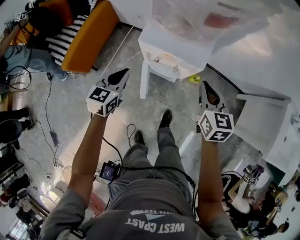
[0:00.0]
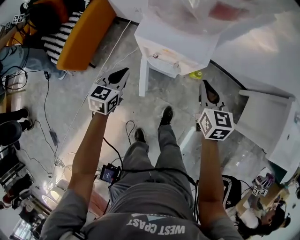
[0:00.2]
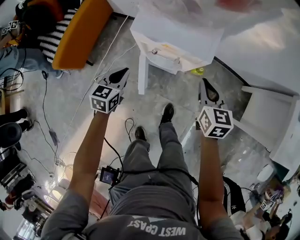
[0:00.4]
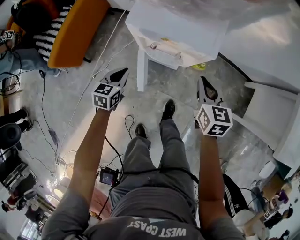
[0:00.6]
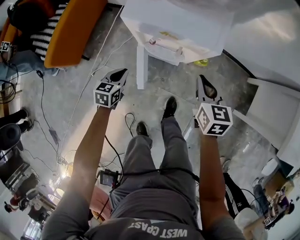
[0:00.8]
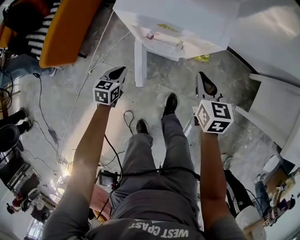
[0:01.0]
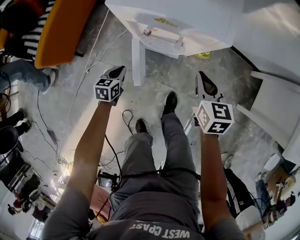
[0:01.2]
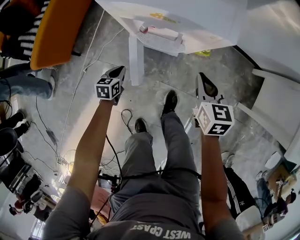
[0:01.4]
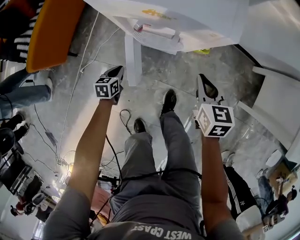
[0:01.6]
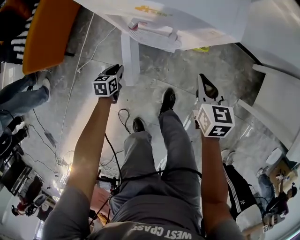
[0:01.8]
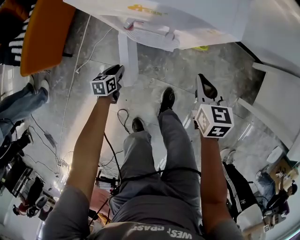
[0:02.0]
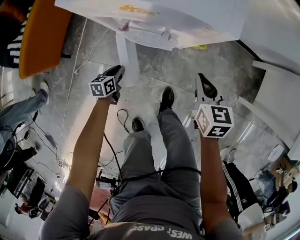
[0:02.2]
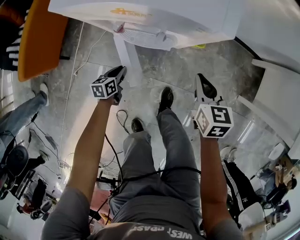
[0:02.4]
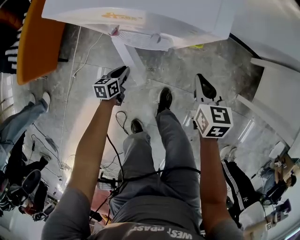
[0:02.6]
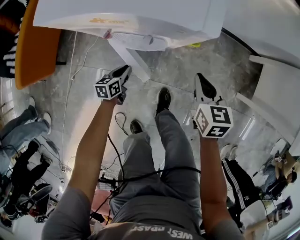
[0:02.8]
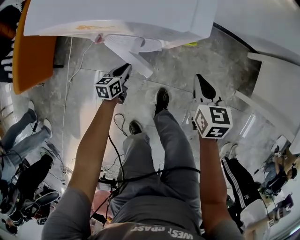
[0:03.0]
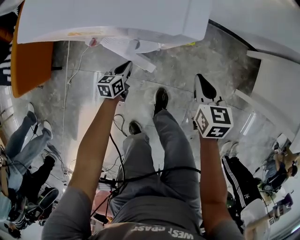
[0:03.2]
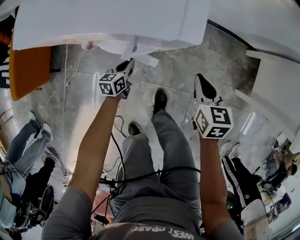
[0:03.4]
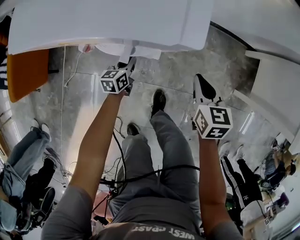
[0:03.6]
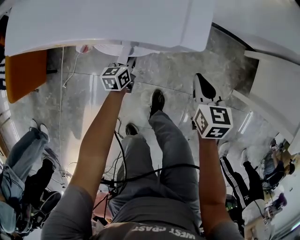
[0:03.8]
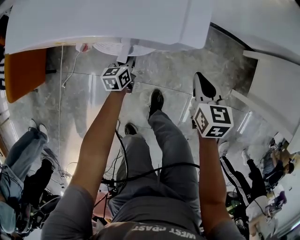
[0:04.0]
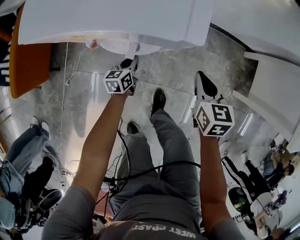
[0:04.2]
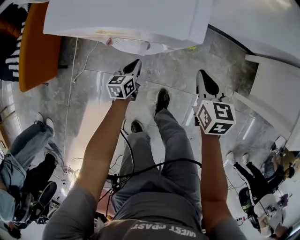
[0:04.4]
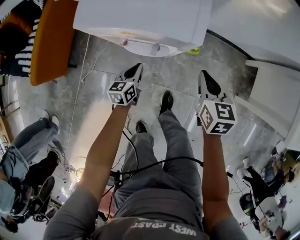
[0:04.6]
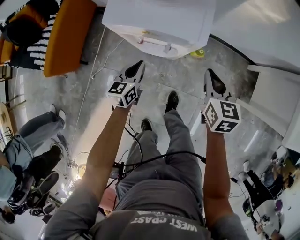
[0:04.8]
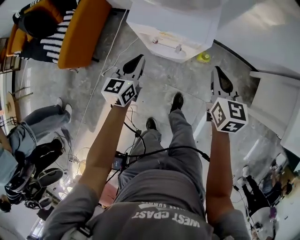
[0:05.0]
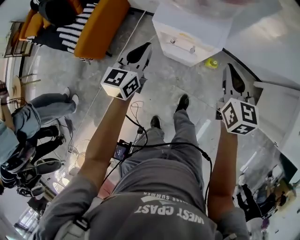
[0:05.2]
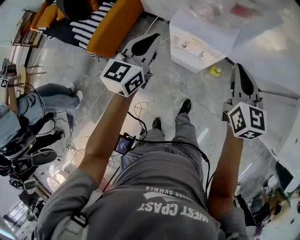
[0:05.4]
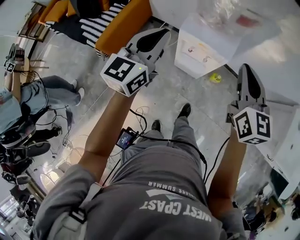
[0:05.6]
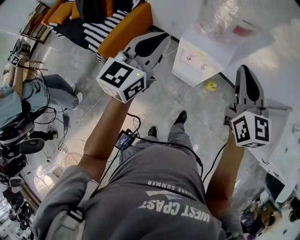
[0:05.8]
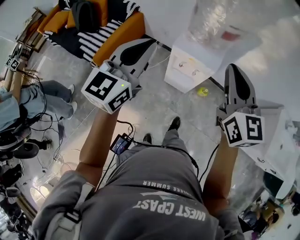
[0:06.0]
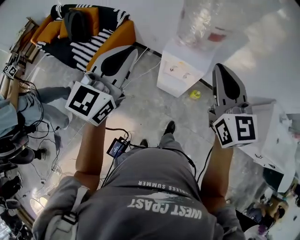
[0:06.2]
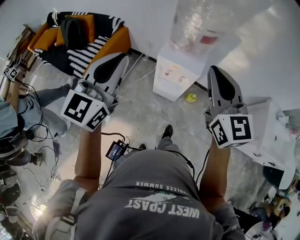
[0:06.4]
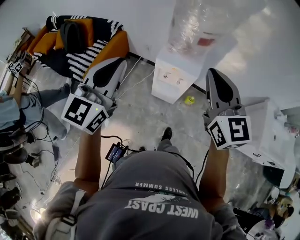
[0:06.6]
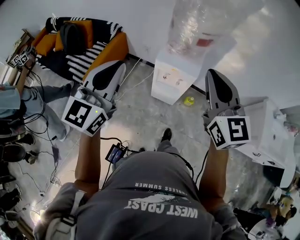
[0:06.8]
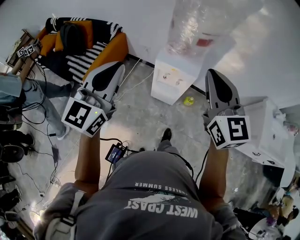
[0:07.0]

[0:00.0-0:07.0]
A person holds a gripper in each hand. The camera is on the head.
0:00.0 to 0:01.4: The left gripper goes roughly 40 cm downward, and rotates about 30 degrees; the right gripper is displaced downward by about 25 cm.
0:01.4 to 0:02.8: The grippers both shift to the right and downward by about 10 cm.
0:02.8 to 0:04.2: The left gripper moves forward and to the right, roughly 10 cm.
0:04.2 to 0:05.6: The two grippers go roughly 60 cm upward. The right gripper points its fingers approximately 30 degrees further upward, while the left gripper tilts its fingers about 30 degrees upward.
0:05.6 to 0:07.0: The left gripper shifts roughly 20 cm backward and upward. Meanwhile the right gripper travels upward and backward by roughly 20 cm.

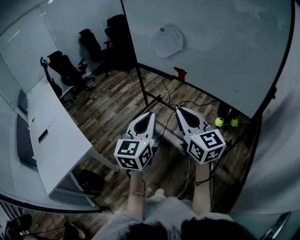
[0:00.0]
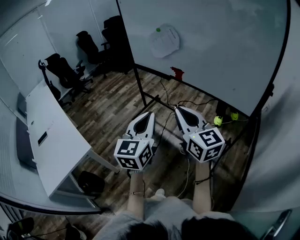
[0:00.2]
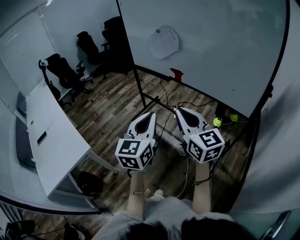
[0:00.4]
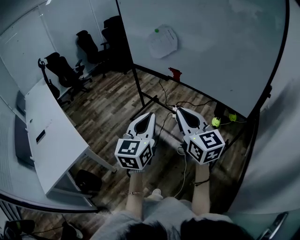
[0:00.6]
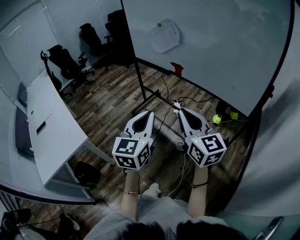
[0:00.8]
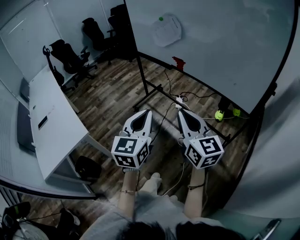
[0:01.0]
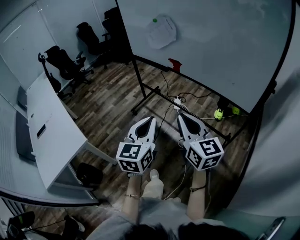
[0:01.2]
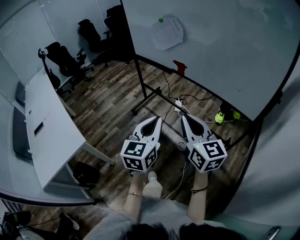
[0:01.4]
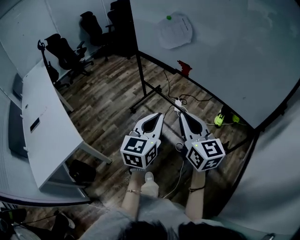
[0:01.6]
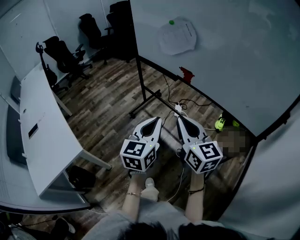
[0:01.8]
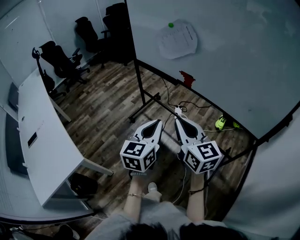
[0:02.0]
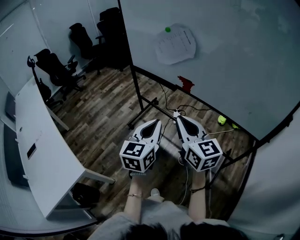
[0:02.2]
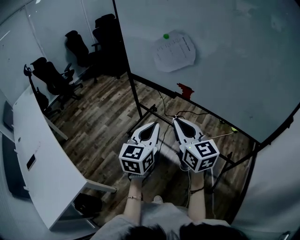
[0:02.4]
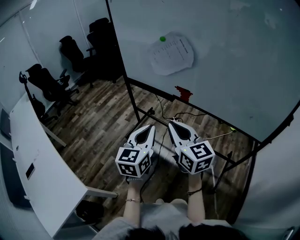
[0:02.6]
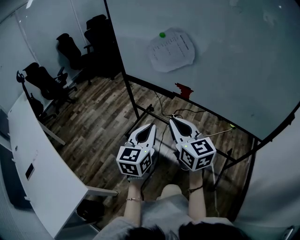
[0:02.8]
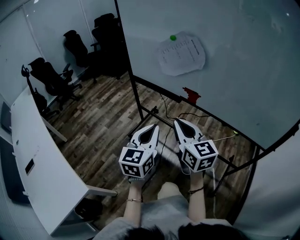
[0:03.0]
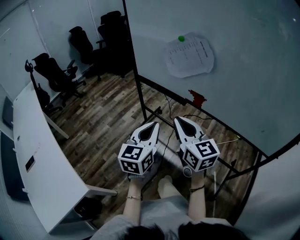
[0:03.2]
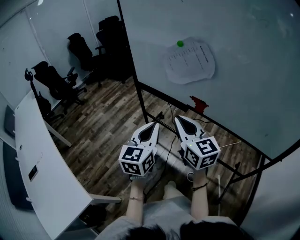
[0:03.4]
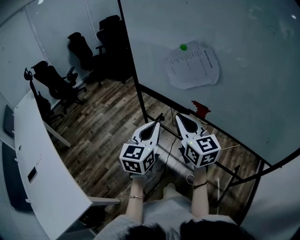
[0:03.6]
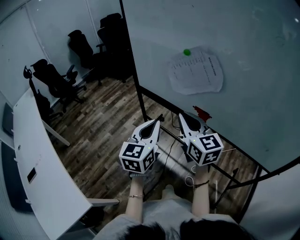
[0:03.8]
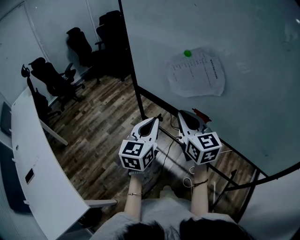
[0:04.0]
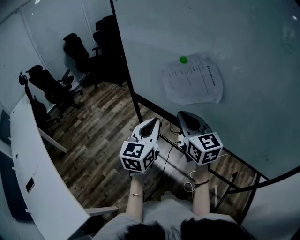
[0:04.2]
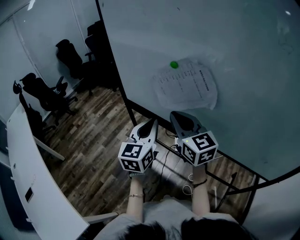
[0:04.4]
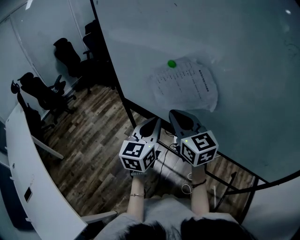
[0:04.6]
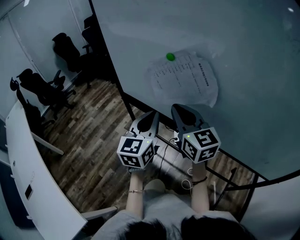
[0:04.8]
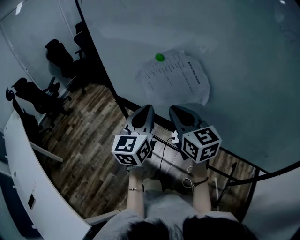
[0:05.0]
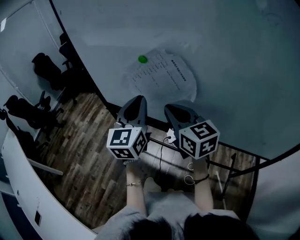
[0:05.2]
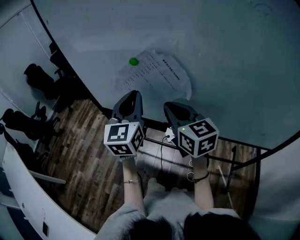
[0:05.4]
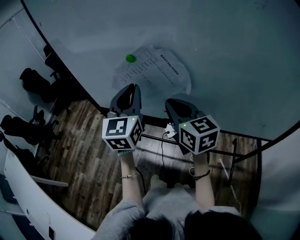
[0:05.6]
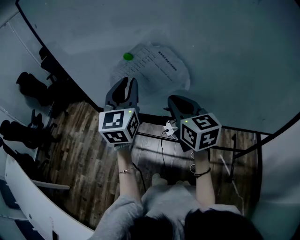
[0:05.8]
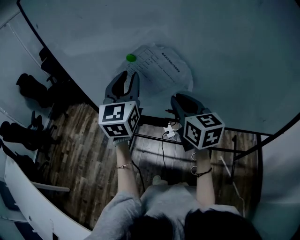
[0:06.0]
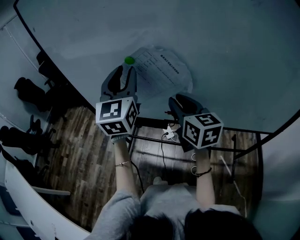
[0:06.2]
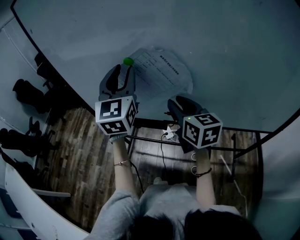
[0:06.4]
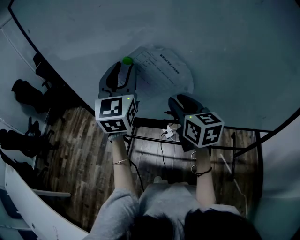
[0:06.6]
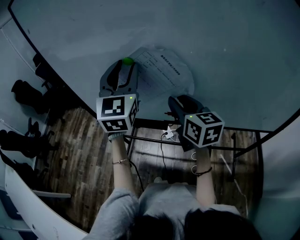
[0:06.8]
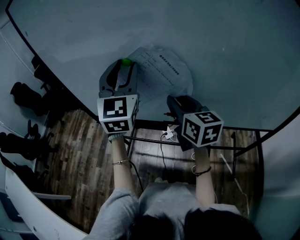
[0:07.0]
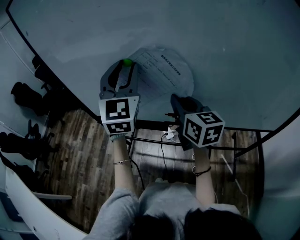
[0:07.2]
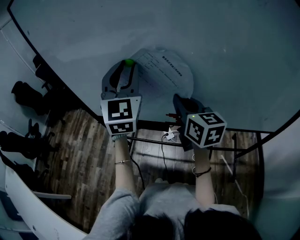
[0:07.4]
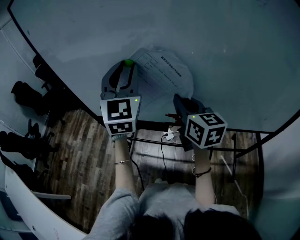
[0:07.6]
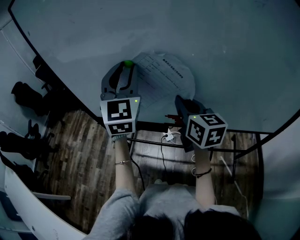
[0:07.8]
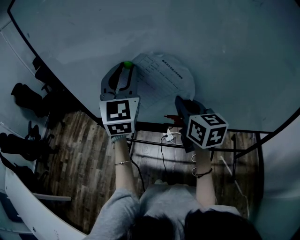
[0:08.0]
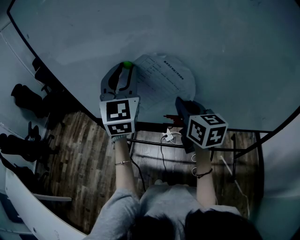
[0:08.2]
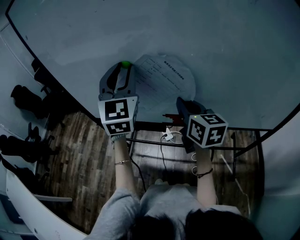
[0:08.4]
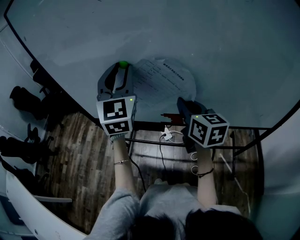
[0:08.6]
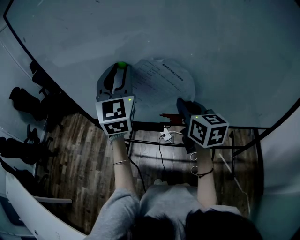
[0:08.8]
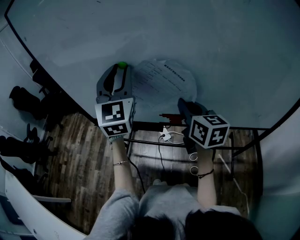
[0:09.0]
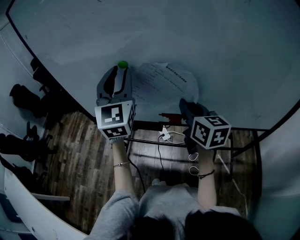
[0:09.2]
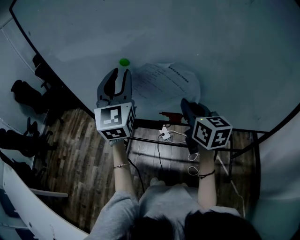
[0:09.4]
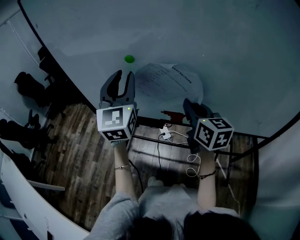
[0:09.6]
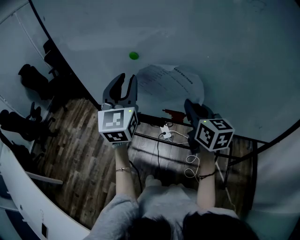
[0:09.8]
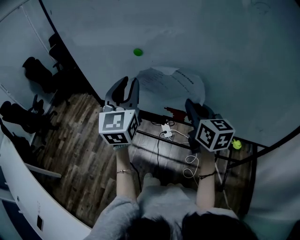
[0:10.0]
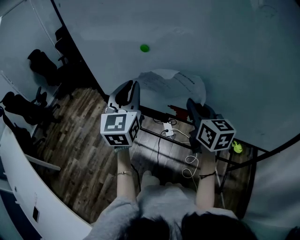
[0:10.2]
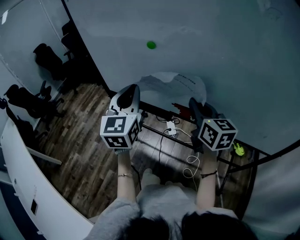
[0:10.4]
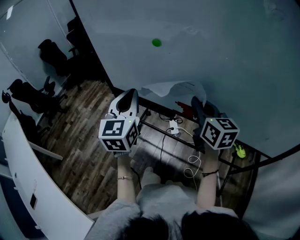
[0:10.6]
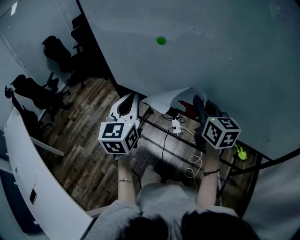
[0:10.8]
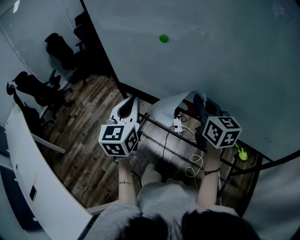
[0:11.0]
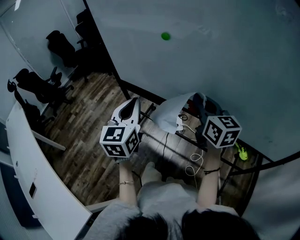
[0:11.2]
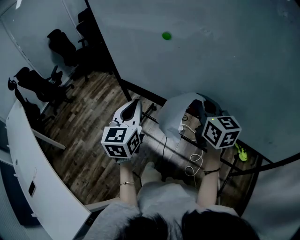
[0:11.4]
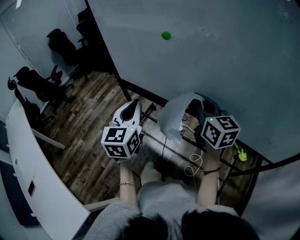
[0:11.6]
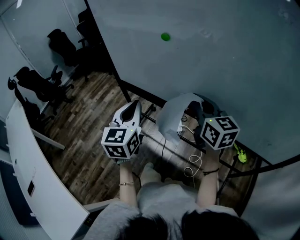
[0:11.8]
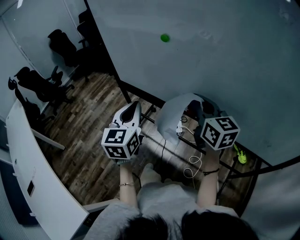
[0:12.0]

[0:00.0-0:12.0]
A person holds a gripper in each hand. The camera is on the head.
0:00.0 to 0:01.6: The grippers both shift forward and downward by some 10 cm.
0:01.6 to 0:03.0: Both grippers move forward and to the left, approximately 20 cm.
0:03.0 to 0:04.4: The grippers both shift forward by about 25 cm.
0:04.4 to 0:06.0: The right gripper is displaced to the right by approximately 10 cm, and turns by approximately 30 degrees. Meanwhile the left gripper goes approximately 15 cm forward, upward and to the right, and opens.
0:06.0 to 0:07.6: The grippers make only small movements.
0:07.6 to 0:09.0: The grippers move only a little.
0:09.0 to 0:10.4: The left gripper is displaced downward and backward by roughly 15 cm, and closes up.
0:10.4 to 0:12.0: The left gripper goes about 5 cm downward.

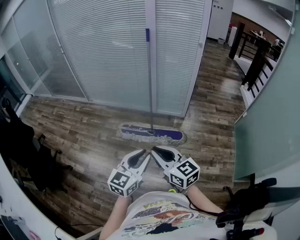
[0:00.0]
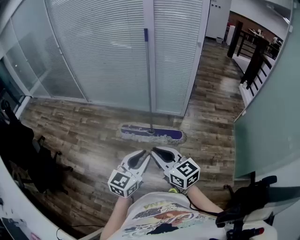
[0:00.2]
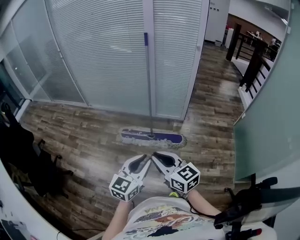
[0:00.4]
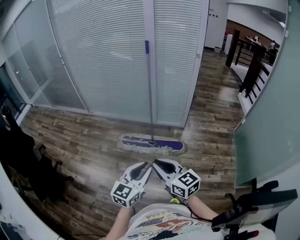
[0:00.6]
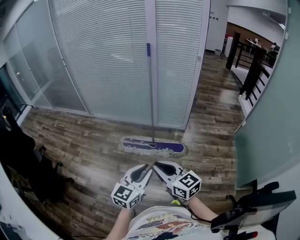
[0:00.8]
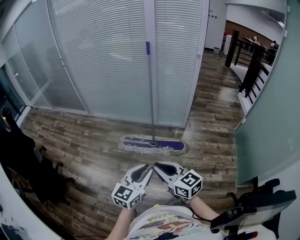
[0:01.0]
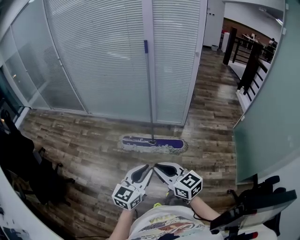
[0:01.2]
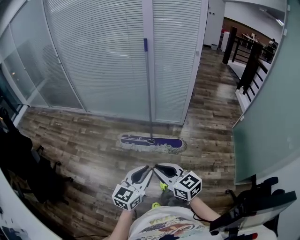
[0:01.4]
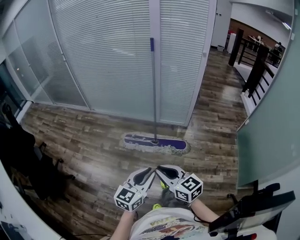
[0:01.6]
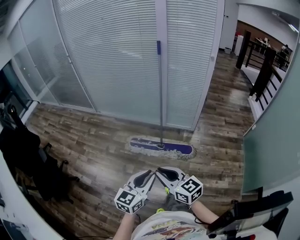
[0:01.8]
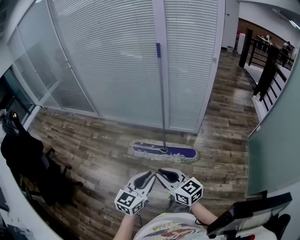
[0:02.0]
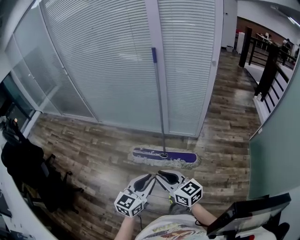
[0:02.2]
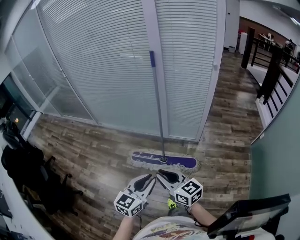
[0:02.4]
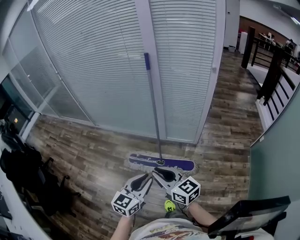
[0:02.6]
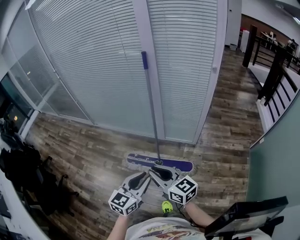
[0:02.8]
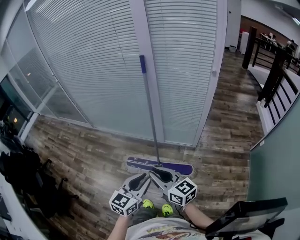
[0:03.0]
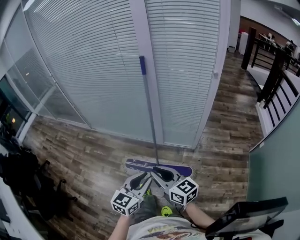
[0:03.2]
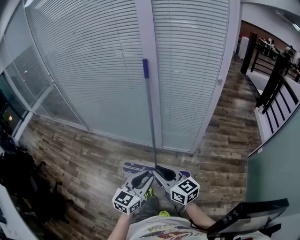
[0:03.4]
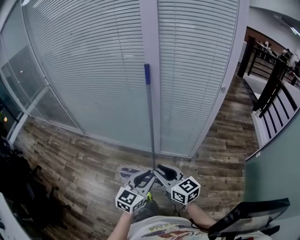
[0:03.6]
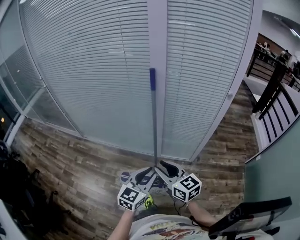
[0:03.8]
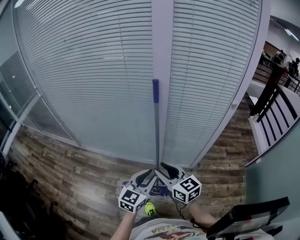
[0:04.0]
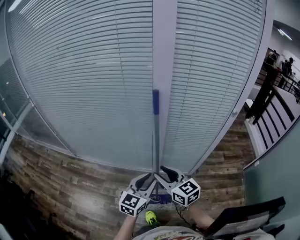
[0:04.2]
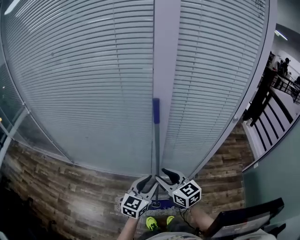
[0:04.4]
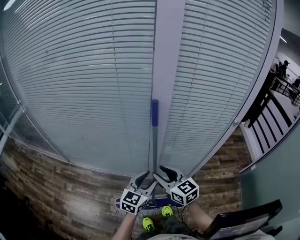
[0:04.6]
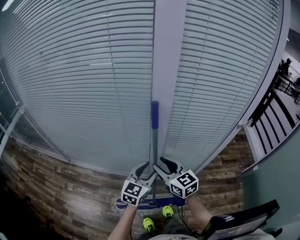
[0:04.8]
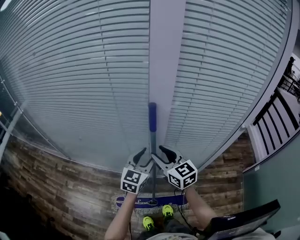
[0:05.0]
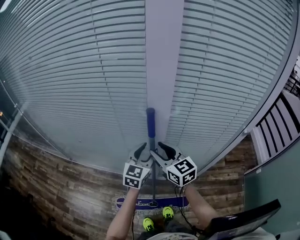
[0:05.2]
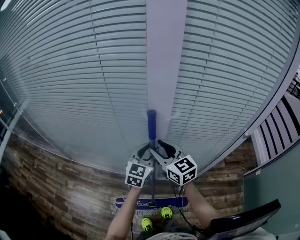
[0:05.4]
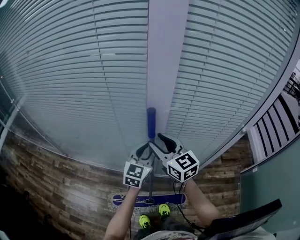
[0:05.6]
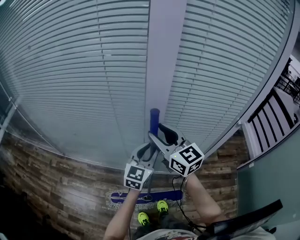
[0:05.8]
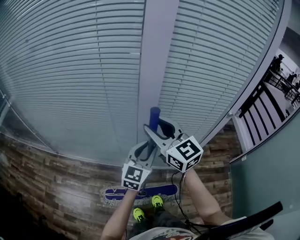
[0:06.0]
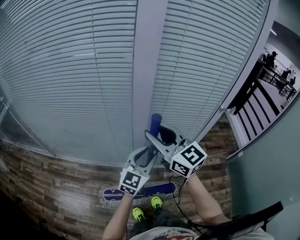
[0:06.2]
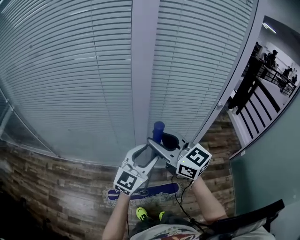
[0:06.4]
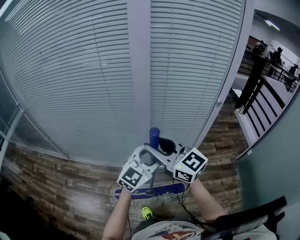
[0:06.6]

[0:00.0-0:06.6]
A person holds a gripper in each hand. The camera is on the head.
0:00.0 to 0:01.6: The right gripper ends up roughly 5 cm from where it was; the left gripper shifts by some 5 cm.
0:01.6 to 0:03.2: Both grippers are carried forward, roughly 40 cm.
0:03.2 to 0:05.0: The two grippers travel together, forward, some 50 cm. The right gripper turns by some 20 degrees, and opens. Meanwhile the left gripper opens its fingers.
0:05.0 to 0:06.6: The right gripper heads backward and upward, covering some 25 cm. Meanwhile the left gripper moves backward, upward and to the right, about 25 cm, and changes its angle by approximately 30 degrees.
